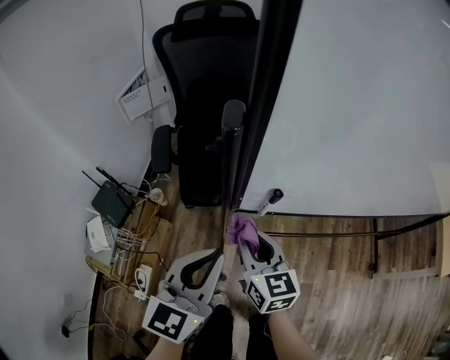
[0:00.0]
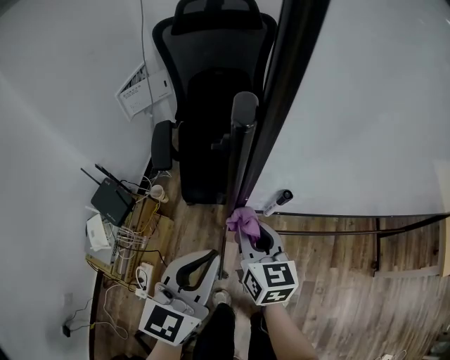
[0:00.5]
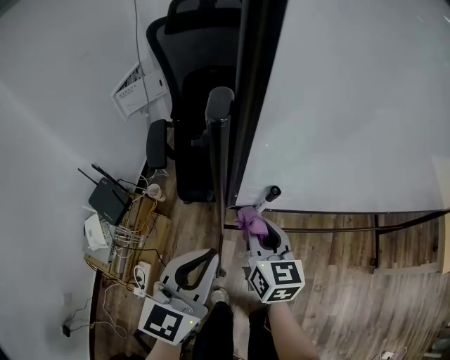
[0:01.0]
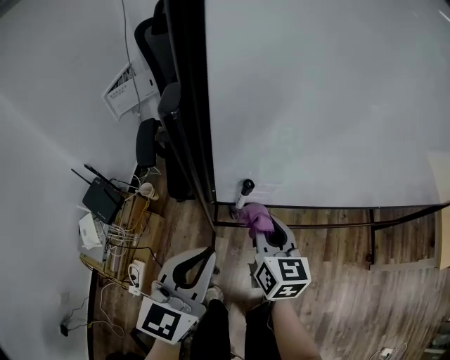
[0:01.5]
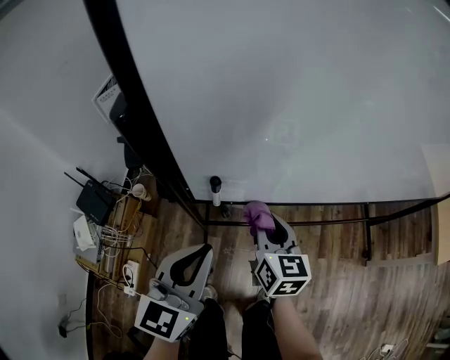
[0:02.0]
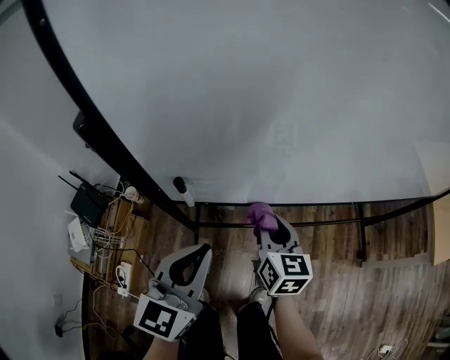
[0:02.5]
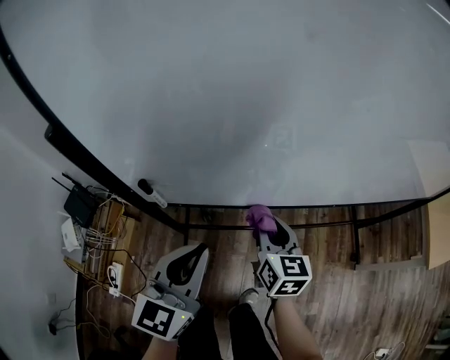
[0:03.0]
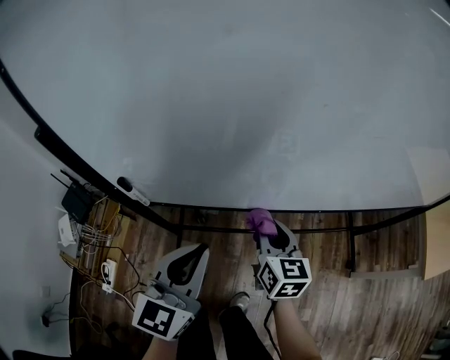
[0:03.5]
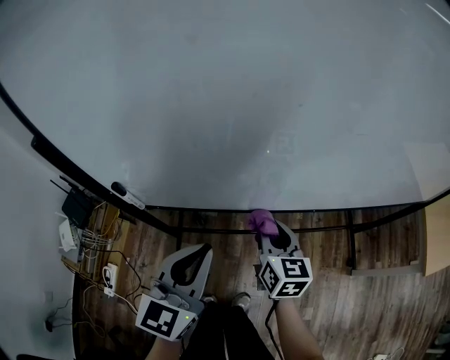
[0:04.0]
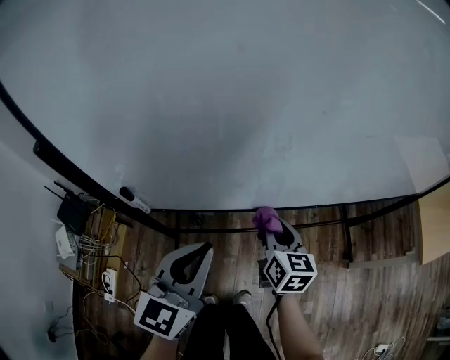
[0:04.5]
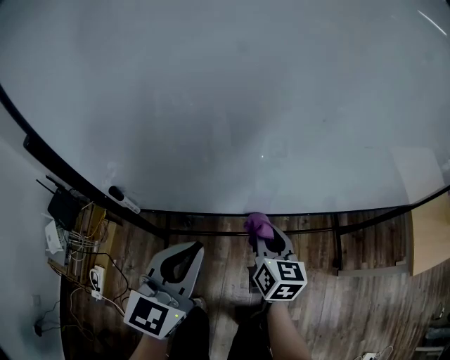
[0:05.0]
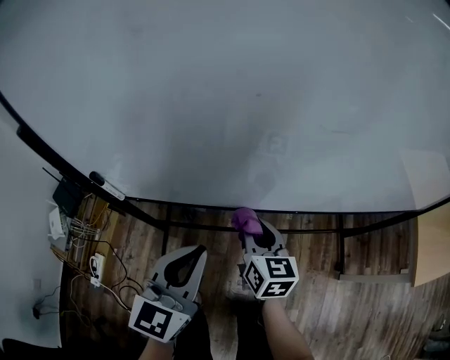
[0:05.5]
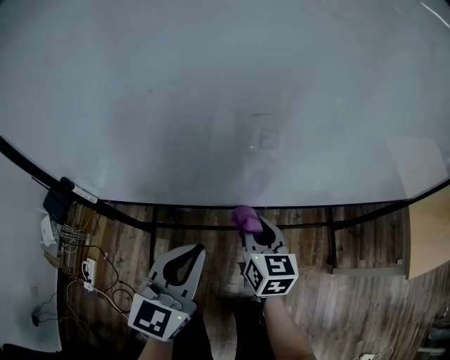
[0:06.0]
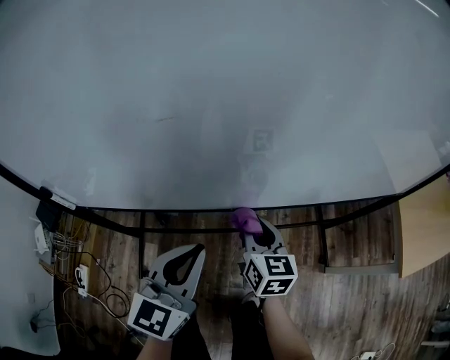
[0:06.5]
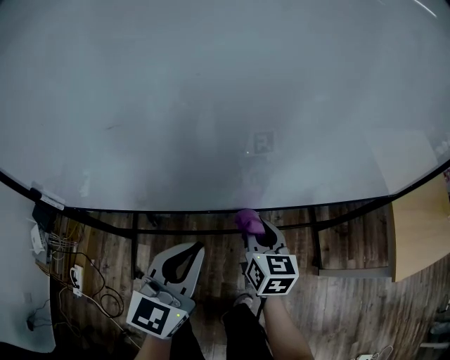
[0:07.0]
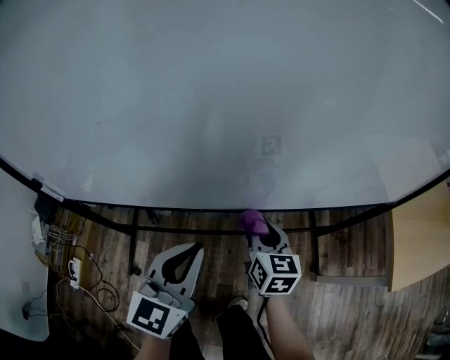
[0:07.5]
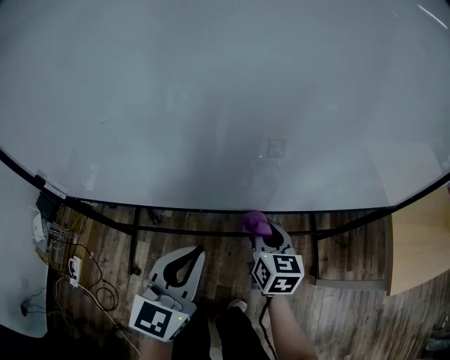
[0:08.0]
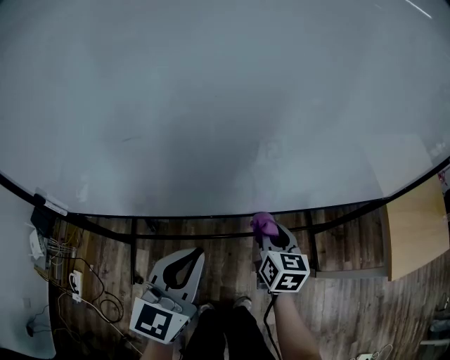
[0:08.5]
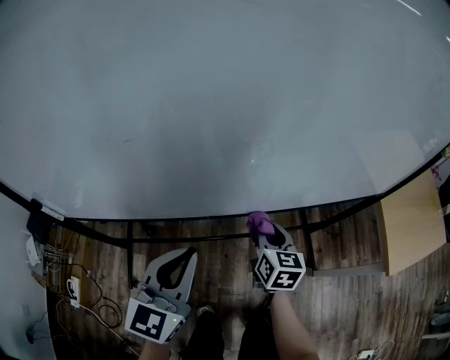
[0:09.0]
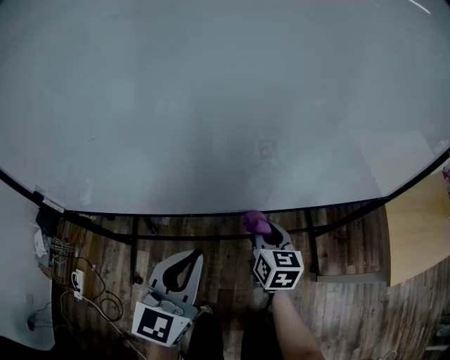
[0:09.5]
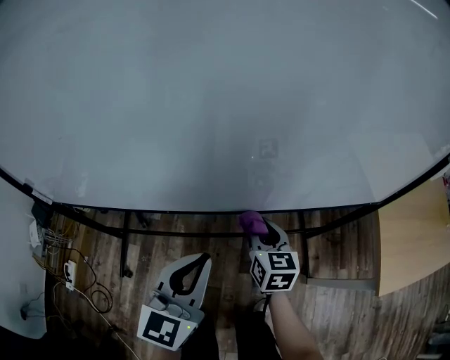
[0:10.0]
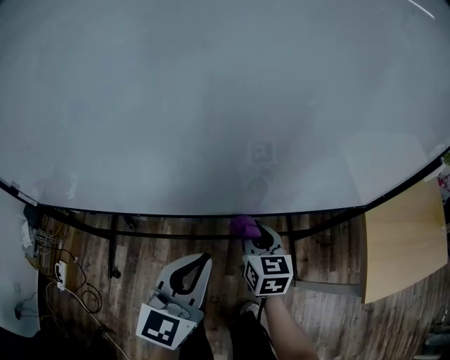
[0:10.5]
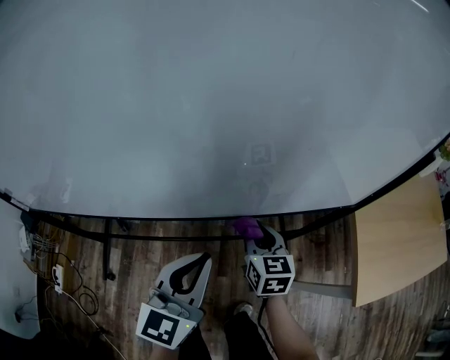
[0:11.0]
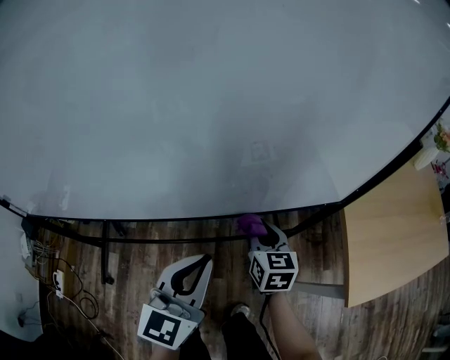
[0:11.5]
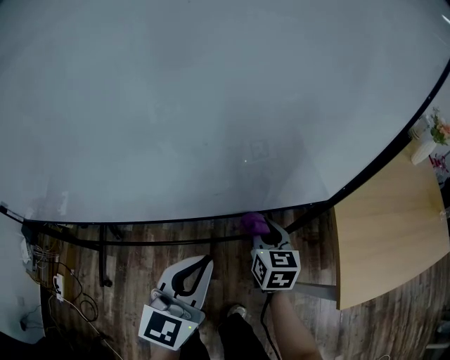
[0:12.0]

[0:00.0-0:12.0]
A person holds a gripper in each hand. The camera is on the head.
0:00.0 to 0:02.0: The right gripper travels to the right by about 15 cm, while the left gripper moves to the right, some 5 cm.
0:02.0 to 0:04.0: The grippers both shift to the right by about 20 cm.
0:04.0 to 0:06.0: Both grippers move to the right, approximately 10 cm.
0:06.0 to 0:08.0: The two grippers go some 15 cm to the right.
0:08.0 to 0:10.0: Both grippers travel together to the right, roughly 10 cm.
0:10.0 to 0:12.0: The two grippers go approximately 25 cm to the right.

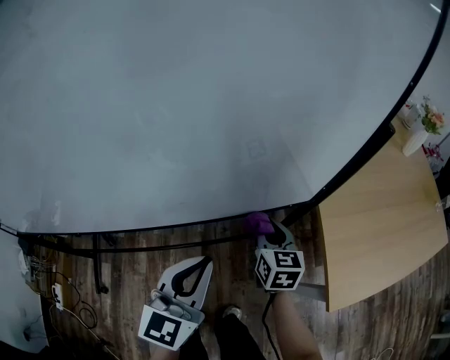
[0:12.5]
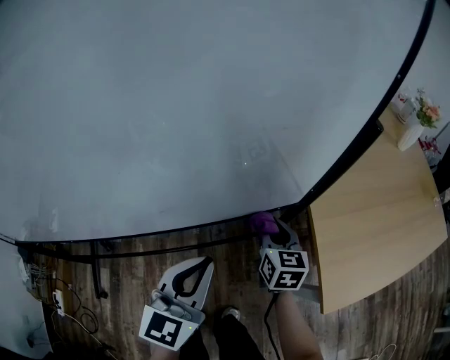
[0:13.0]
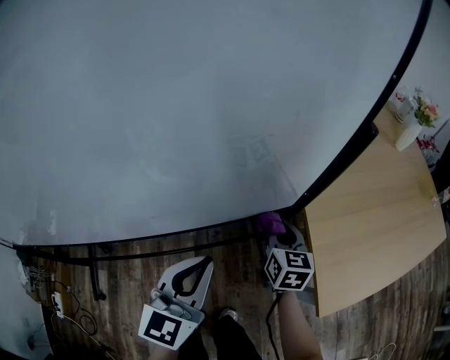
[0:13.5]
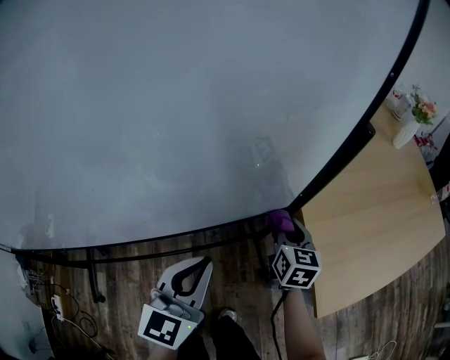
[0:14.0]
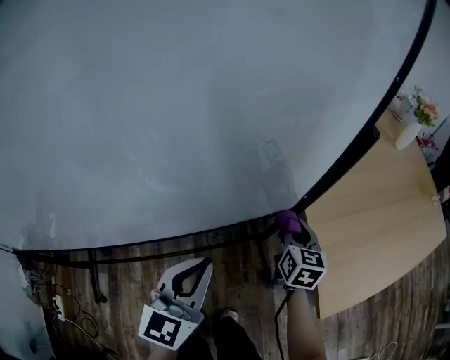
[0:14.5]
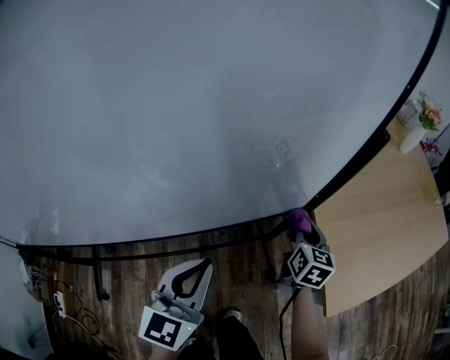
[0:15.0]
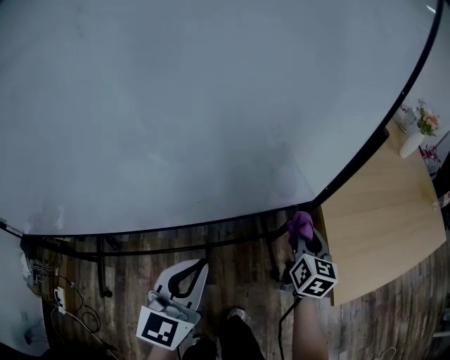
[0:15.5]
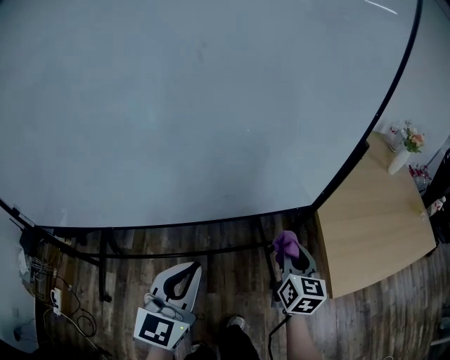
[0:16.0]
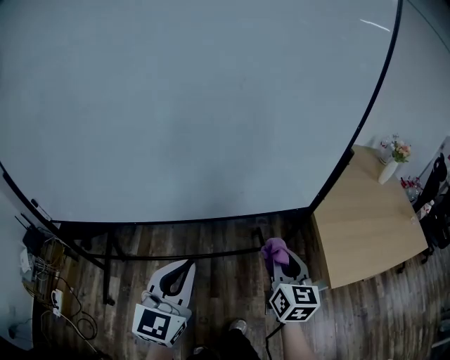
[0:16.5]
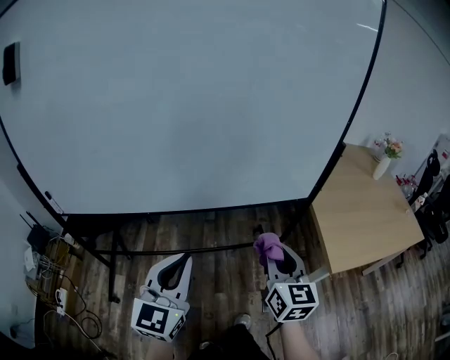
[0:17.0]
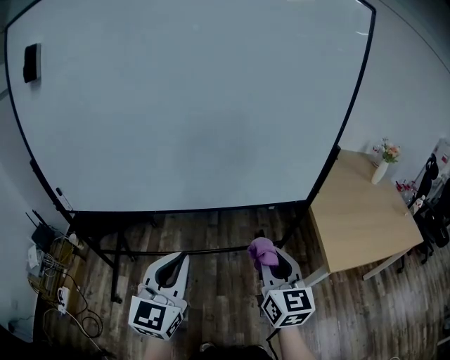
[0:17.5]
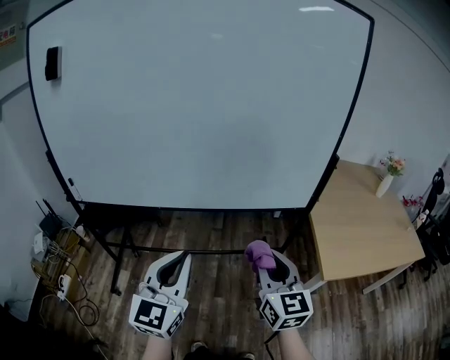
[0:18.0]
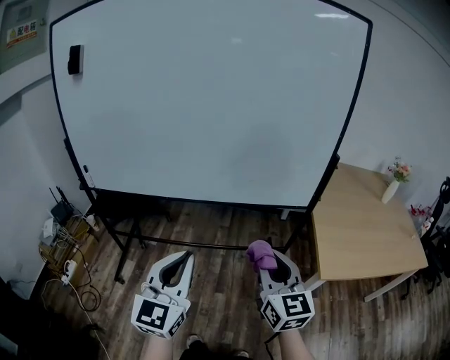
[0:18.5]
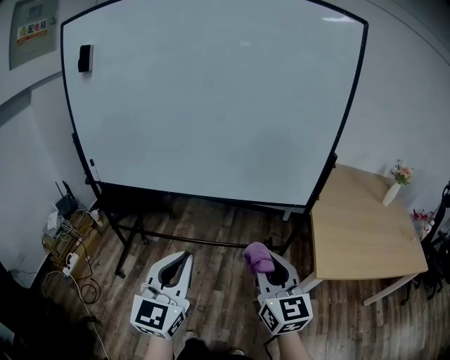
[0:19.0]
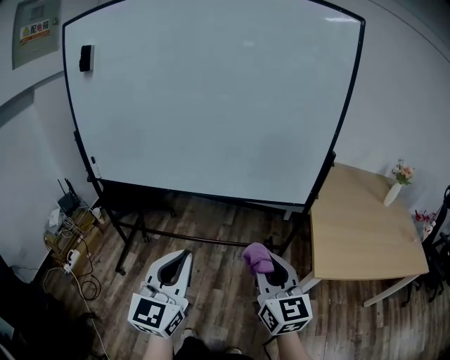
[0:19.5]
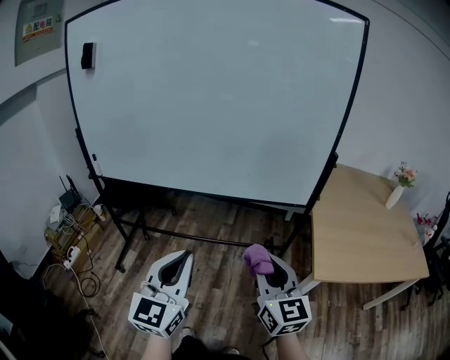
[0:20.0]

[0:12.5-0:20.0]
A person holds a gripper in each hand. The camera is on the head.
0:12.5 to 0:14.5: The left gripper changes place by about 5 cm. Meanwhile the right gripper heads to the right and forward, covering about 15 cm.
0:14.5 to 0:16.5: The right gripper shifts approximately 35 cm backward, upward and to the left, while the left gripper moves backward, to the left and upward, some 30 cm.
0:16.5 to 0:18.0: The two grippers go about 15 cm backward and upward.
0:18.0 to 0:20.0: The right gripper is displaced backward by about 10 cm. The left gripper travels backward and to the right by roughly 10 cm.

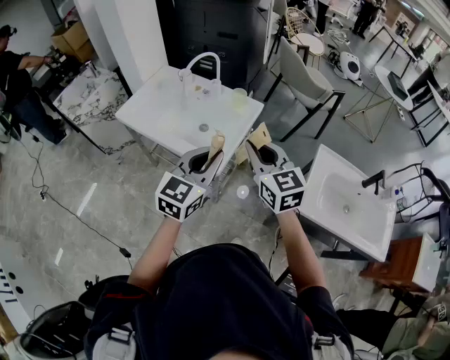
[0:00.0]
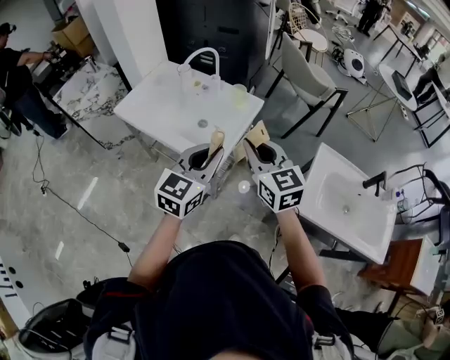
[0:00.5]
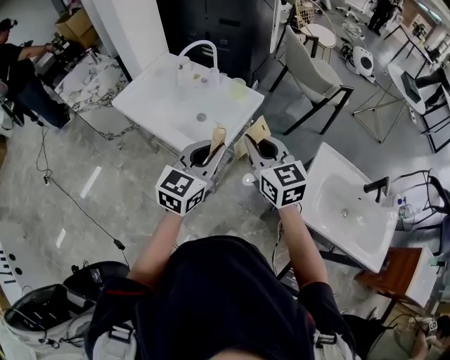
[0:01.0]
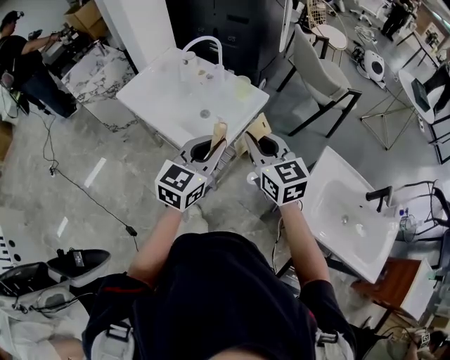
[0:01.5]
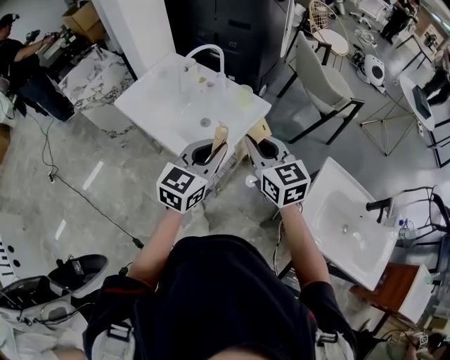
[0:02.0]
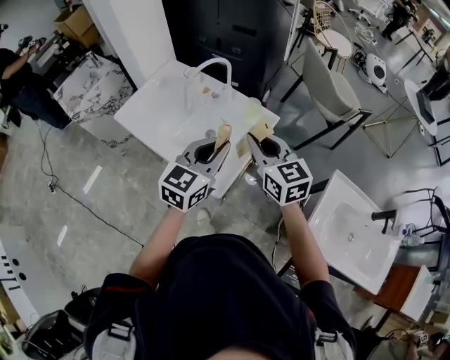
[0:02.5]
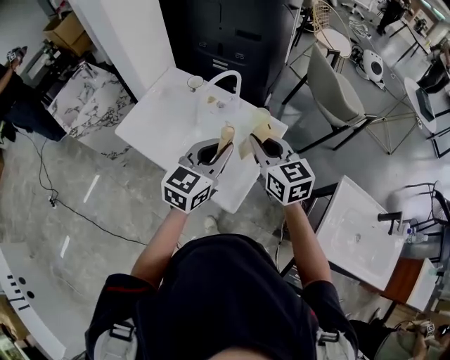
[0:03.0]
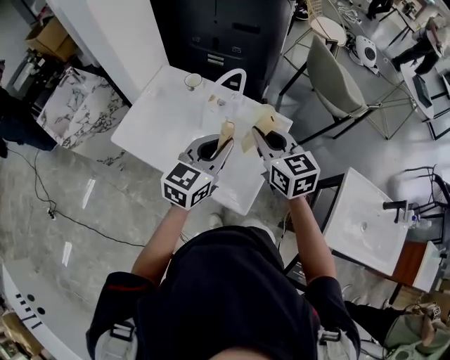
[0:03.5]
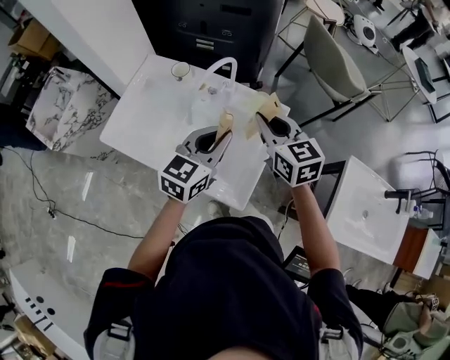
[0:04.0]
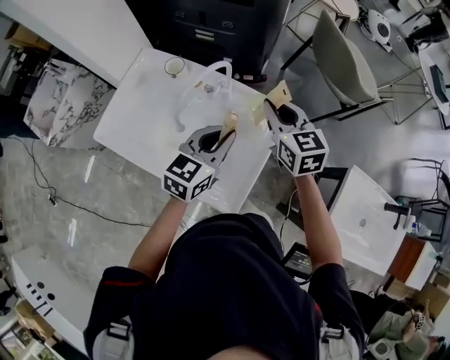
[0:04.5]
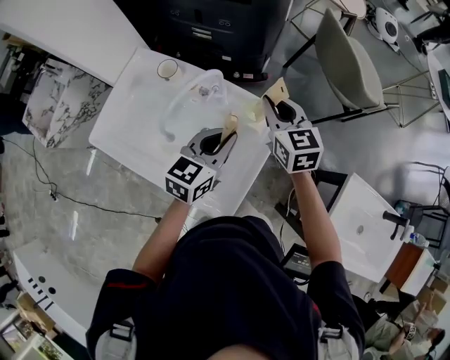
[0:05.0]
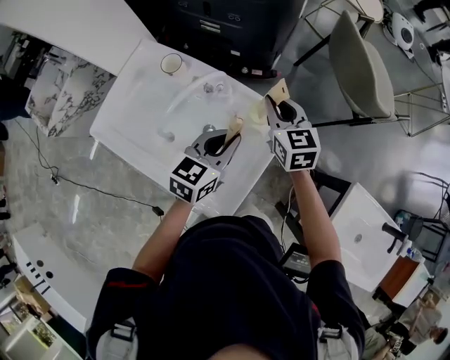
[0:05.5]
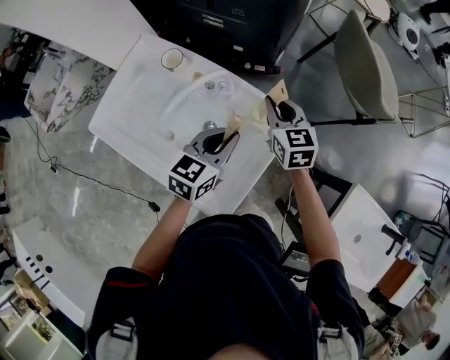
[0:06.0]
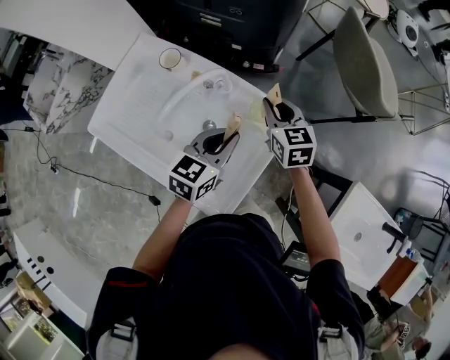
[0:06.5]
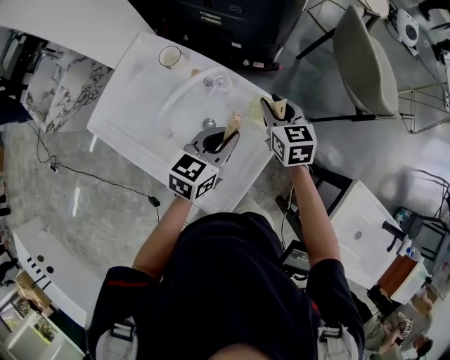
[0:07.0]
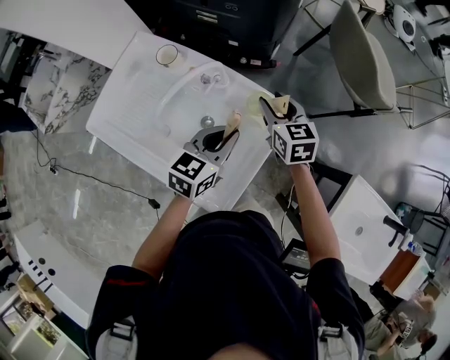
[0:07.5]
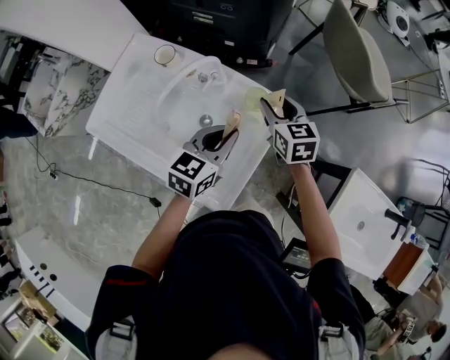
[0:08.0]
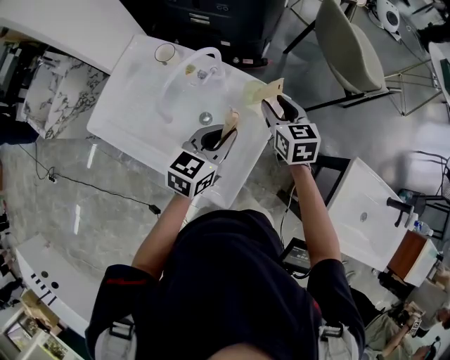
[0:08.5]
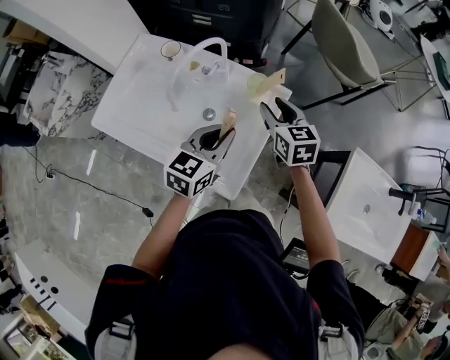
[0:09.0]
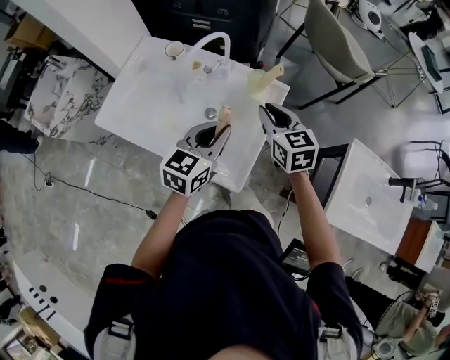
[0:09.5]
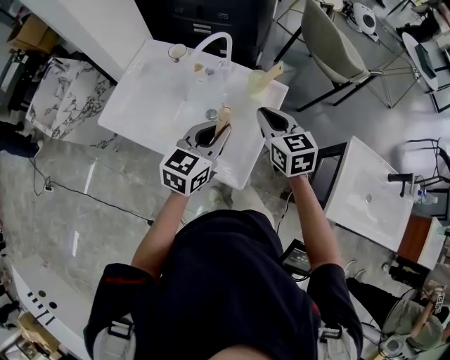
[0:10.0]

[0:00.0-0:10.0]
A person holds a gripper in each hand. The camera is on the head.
0:00.0 to 0:02.0: Both grippers travel together forward, approximately 10 cm.
0:02.0 to 0:04.0: The grippers both shift forward and to the left by roughly 25 cm.
0:04.0 to 0:06.0: The two grippers go approximately 15 cm forward and downward.
0:06.0 to 0:08.0: The right gripper opens up.
0:08.0 to 0:10.0: Both grippers travel together backward and upward, some 15 cm. The right gripper closes.
